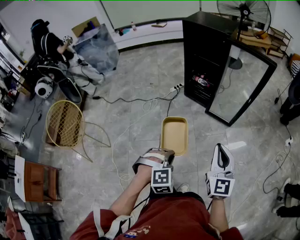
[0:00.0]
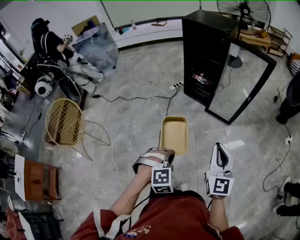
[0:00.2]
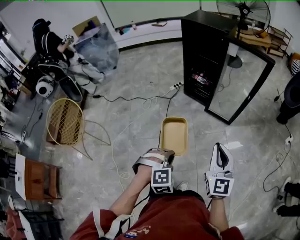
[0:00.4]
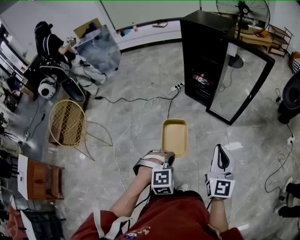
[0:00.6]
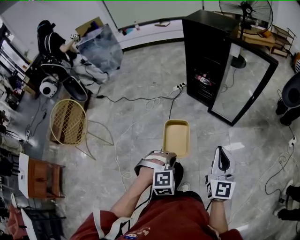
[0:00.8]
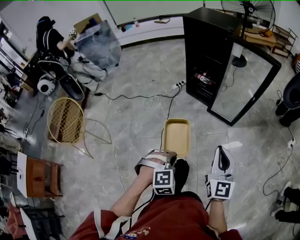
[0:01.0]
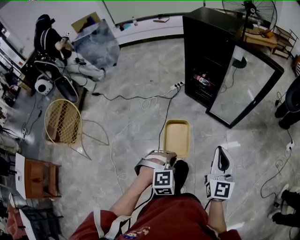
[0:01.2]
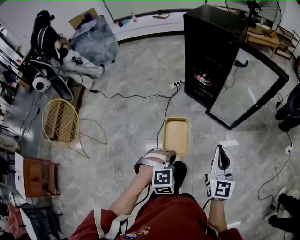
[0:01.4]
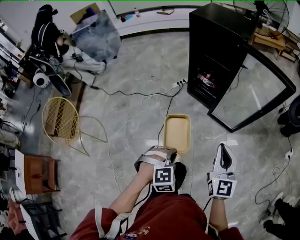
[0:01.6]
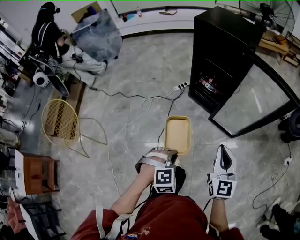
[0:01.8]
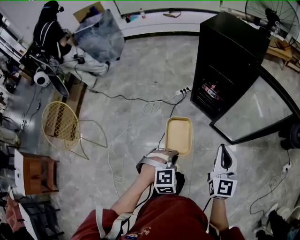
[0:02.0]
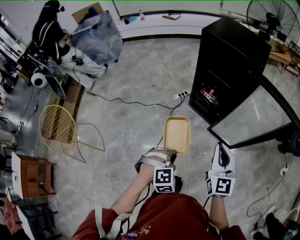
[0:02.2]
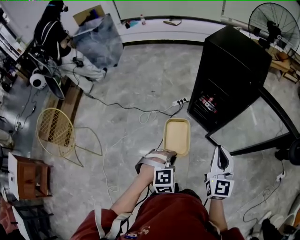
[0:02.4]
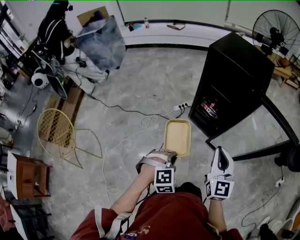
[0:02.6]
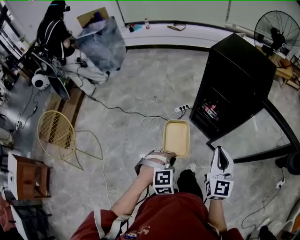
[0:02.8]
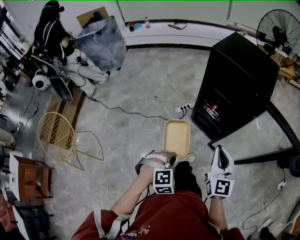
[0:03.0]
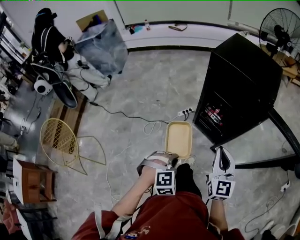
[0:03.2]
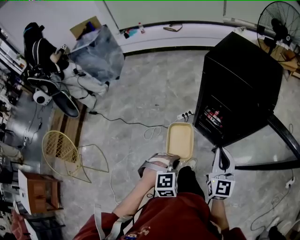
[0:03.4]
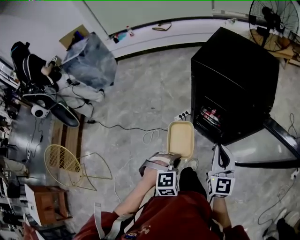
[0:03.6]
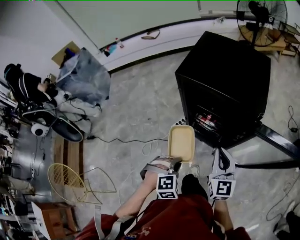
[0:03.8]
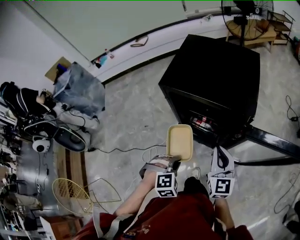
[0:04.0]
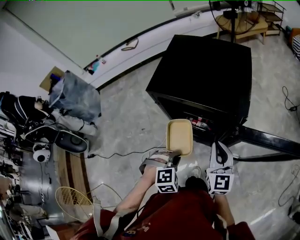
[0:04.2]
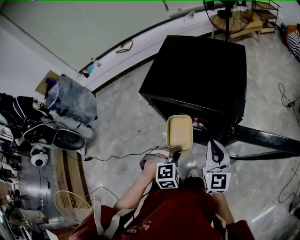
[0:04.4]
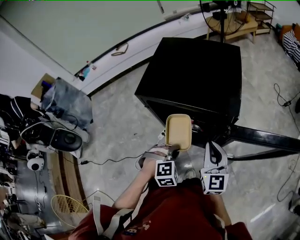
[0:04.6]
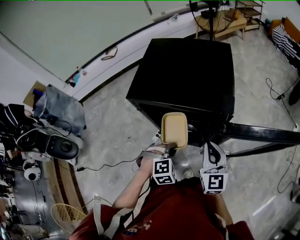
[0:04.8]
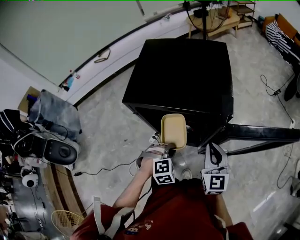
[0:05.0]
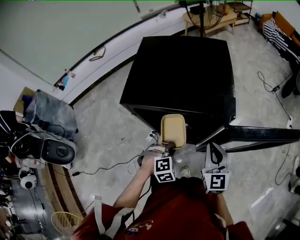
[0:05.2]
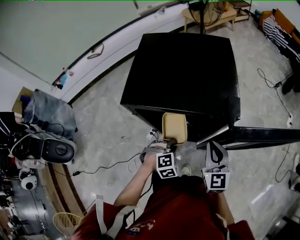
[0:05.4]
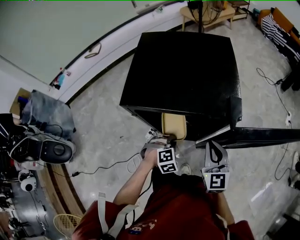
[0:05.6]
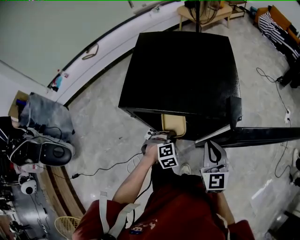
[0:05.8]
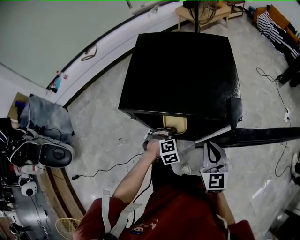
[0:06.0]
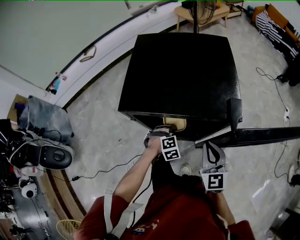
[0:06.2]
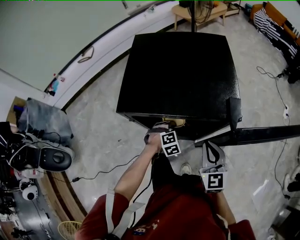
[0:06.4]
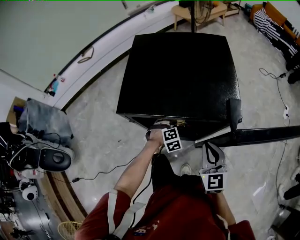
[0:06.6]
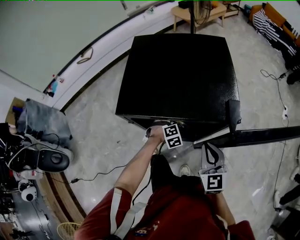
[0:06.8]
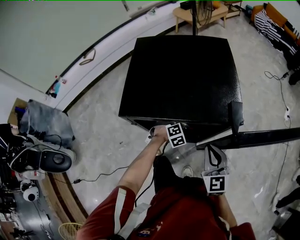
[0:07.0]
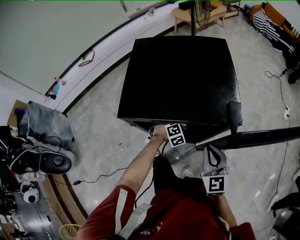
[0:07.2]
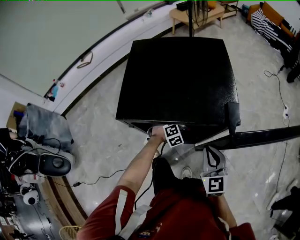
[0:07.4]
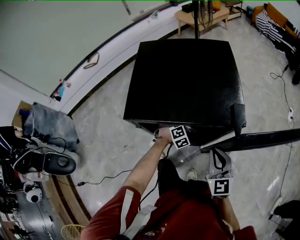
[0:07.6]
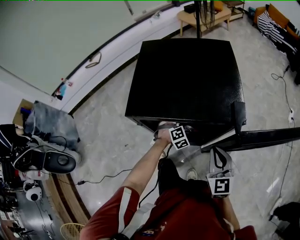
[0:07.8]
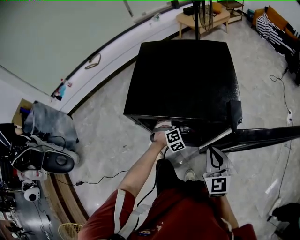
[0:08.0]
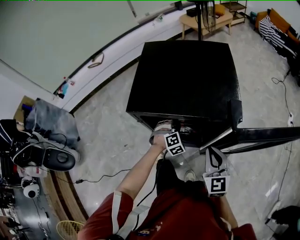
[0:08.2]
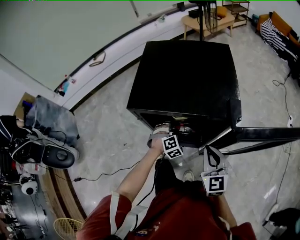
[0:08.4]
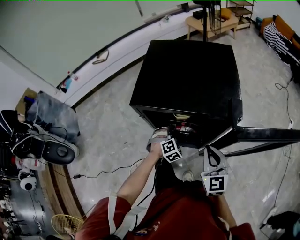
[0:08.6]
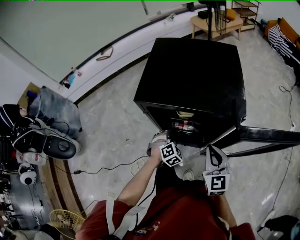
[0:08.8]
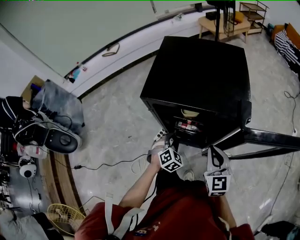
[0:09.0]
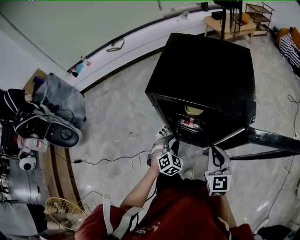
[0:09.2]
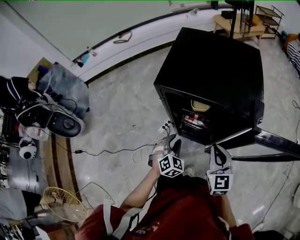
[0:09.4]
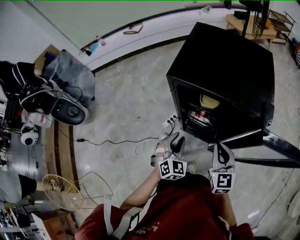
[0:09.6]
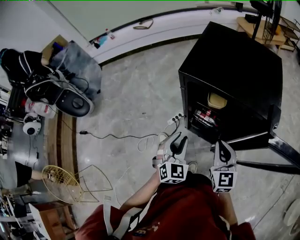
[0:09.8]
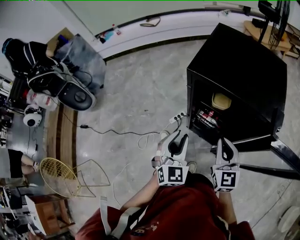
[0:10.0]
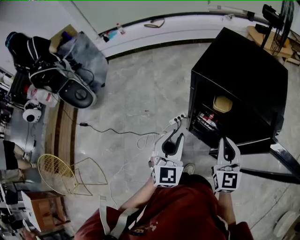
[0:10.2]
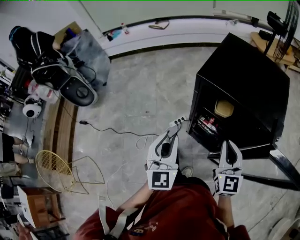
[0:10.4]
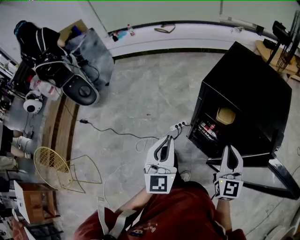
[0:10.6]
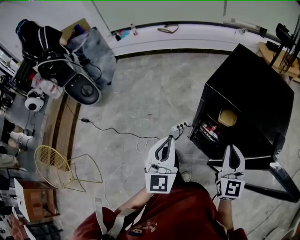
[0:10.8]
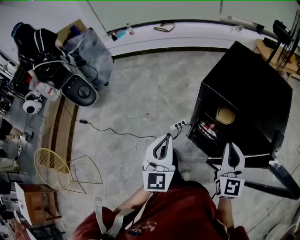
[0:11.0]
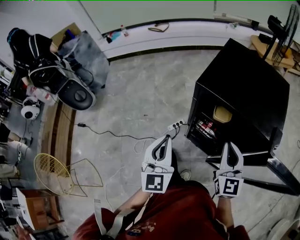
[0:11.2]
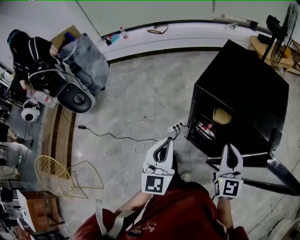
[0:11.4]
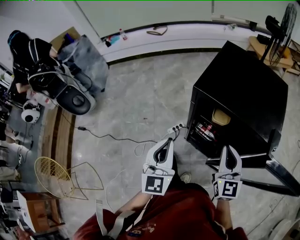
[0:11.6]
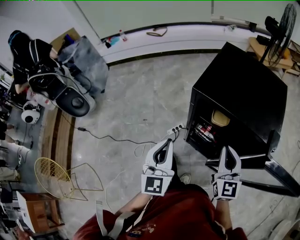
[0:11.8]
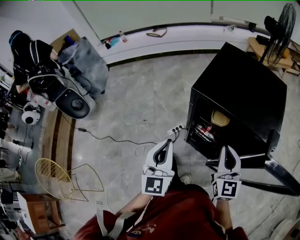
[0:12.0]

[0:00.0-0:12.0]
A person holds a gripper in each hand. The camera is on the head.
0:00.0 to 0:01.6: The grippers both shift forward by approximately 15 cm.
0:01.6 to 0:03.0: The grippers both shift forward by about 25 cm.
0:03.0 to 0:04.4: The grippers both shift forward by roughly 30 cm. The left gripper swivels some 20 degrees.
0:04.4 to 0:06.0: The left gripper heads forward and downward, covering about 15 cm.
0:06.0 to 0:07.6: The left gripper travels forward by roughly 10 cm.
0:07.6 to 0:09.0: The left gripper shifts roughly 15 cm backward, to the left and upward, and rotates approximately 30 degrees.
0:09.0 to 0:10.4: The left gripper shifts roughly 30 cm upward, to the left and backward, and tips its fingers upward by about 40 degrees. Meanwhile the right gripper travels to the left and upward by some 10 cm.
0:10.4 to 0:12.0: The left gripper closes its fingers.

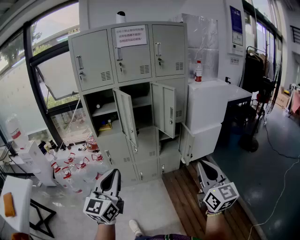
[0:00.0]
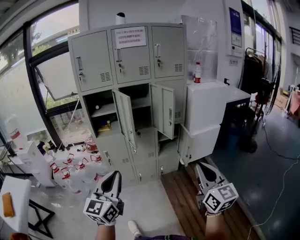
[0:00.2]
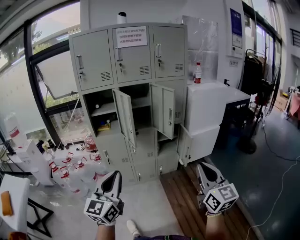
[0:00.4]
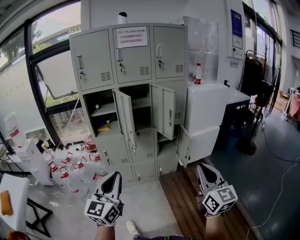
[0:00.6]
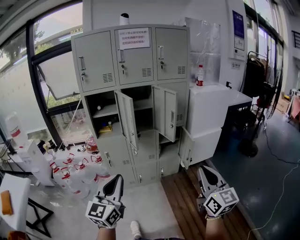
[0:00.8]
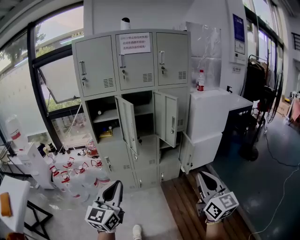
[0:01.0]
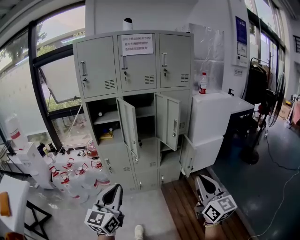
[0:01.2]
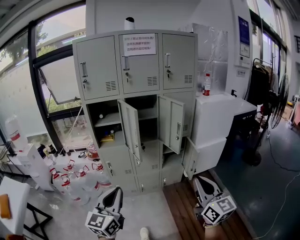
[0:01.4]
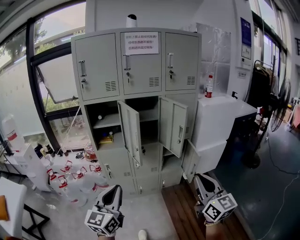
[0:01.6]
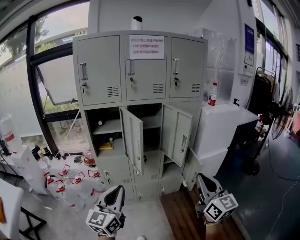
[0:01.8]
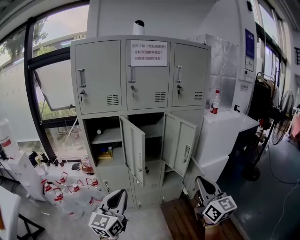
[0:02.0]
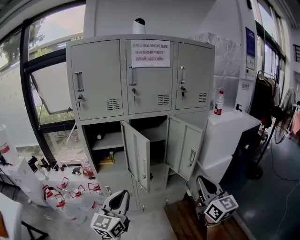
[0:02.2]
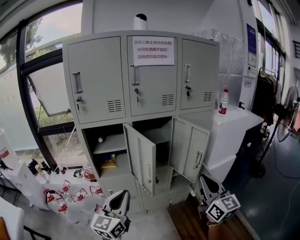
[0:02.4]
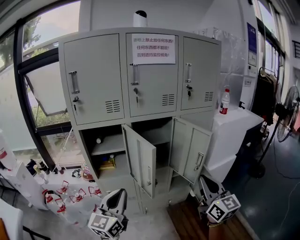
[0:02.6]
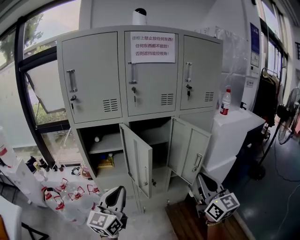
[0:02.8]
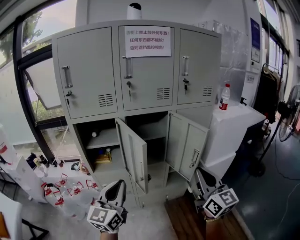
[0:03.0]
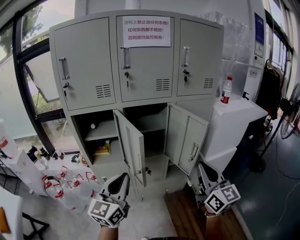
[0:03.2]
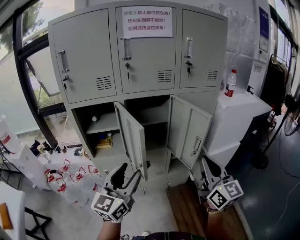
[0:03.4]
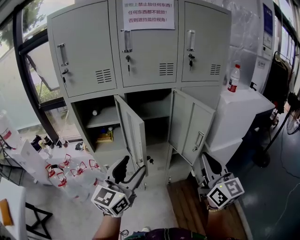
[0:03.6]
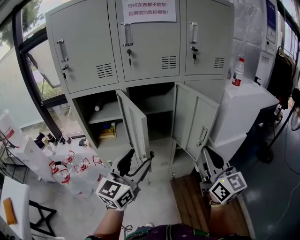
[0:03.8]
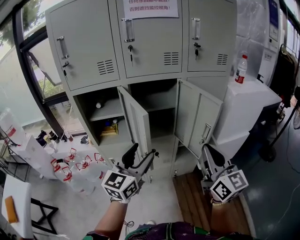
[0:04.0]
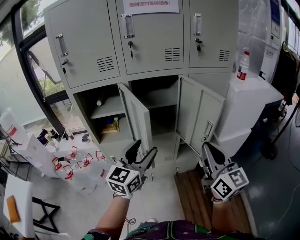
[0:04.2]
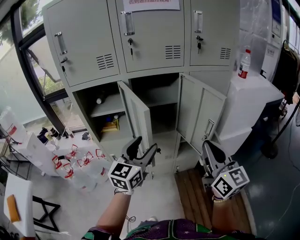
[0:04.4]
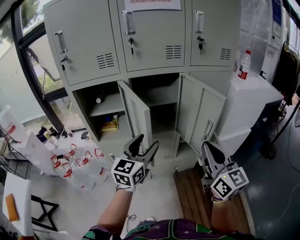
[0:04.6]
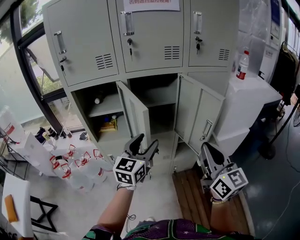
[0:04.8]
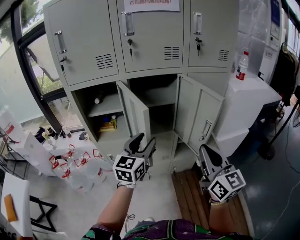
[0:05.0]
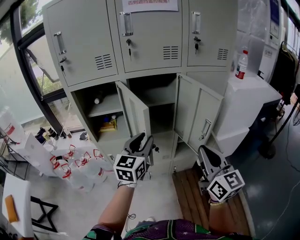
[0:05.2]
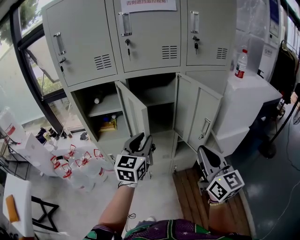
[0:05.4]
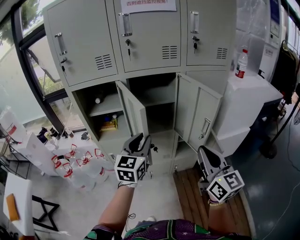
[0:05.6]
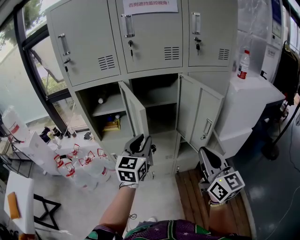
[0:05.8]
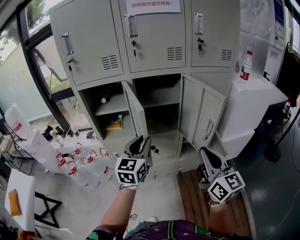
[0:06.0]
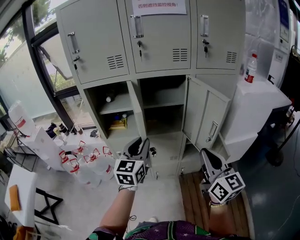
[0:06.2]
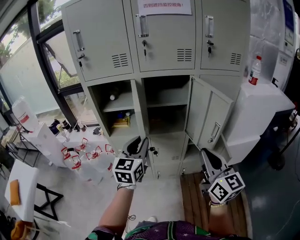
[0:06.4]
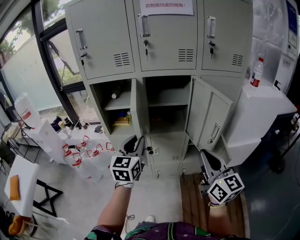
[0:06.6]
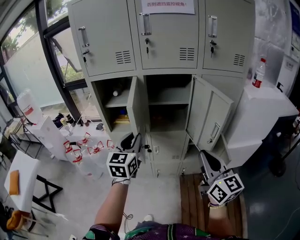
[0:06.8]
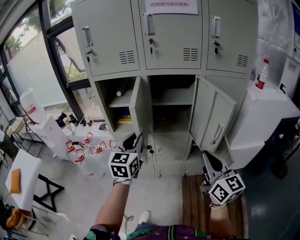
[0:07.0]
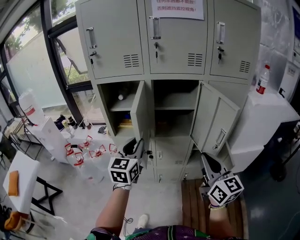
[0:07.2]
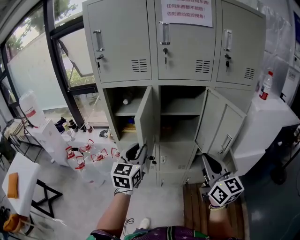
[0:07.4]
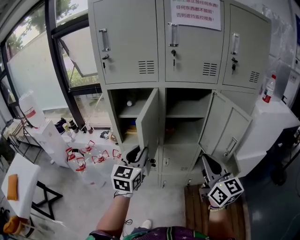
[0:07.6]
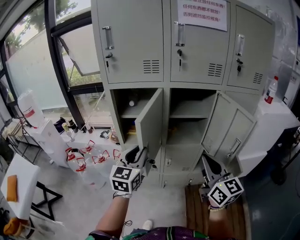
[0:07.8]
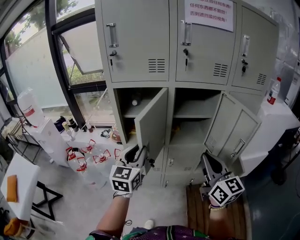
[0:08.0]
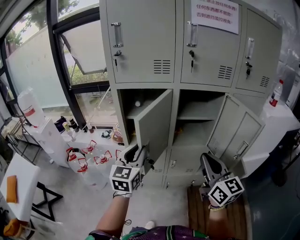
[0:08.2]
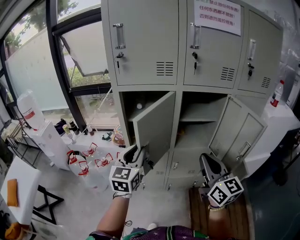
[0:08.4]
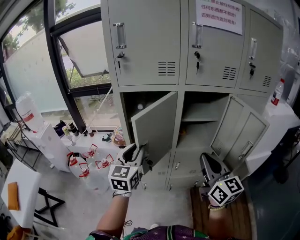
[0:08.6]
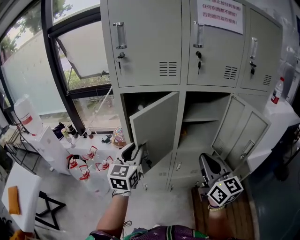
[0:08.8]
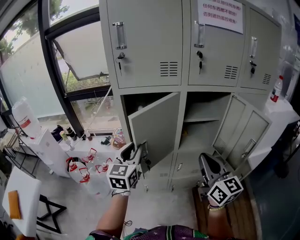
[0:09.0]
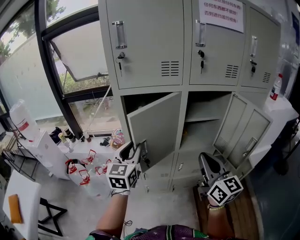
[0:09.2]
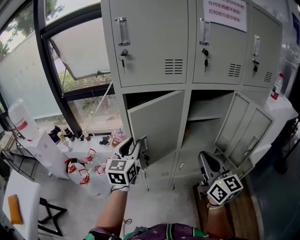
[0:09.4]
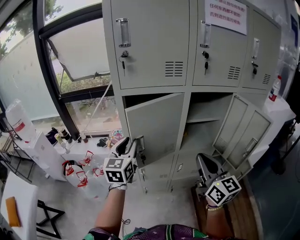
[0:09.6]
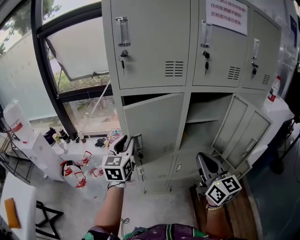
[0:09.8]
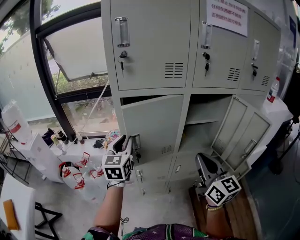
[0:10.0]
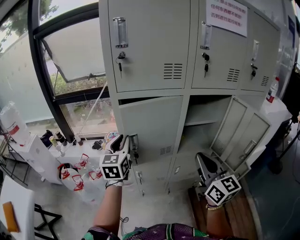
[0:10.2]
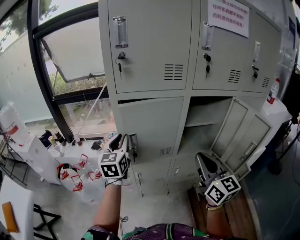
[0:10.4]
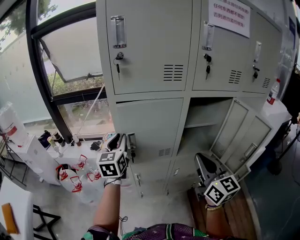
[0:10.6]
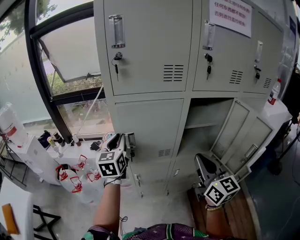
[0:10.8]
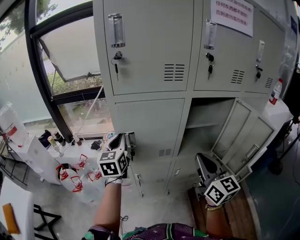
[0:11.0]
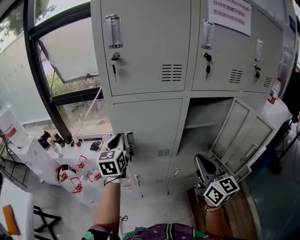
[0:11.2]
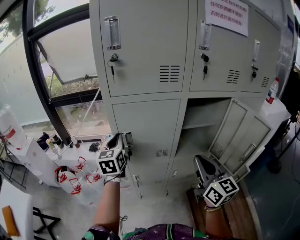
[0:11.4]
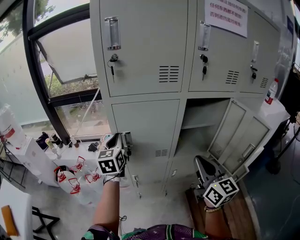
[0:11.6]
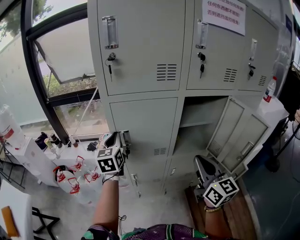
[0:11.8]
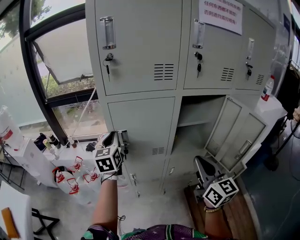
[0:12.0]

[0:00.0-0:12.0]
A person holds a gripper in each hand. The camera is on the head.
0:00.0 to 0:01.6: The right gripper heads forward and to the left, covering some 10 cm. Meanwhile the left gripper goes approximately 10 cm forward.
0:01.6 to 0:03.0: The grippers both shift forward by roughly 25 cm.
0:03.0 to 0:04.4: The right gripper moves roughly 5 cm. The left gripper shifts roughly 15 cm forward, to the right and downward, and opens up.
0:04.4 to 0:06.0: The left gripper closes.
0:06.0 to 0:07.6: Both grippers move to the left, some 10 cm.
0:07.6 to 0:09.0: Both grippers move to the left and forward, about 15 cm.
0:09.0 to 0:10.4: The right gripper shifts by about 5 cm. Meanwhile the left gripper goes about 15 cm forward and to the left.
0:10.4 to 0:12.0: The grippers make only small movements.
